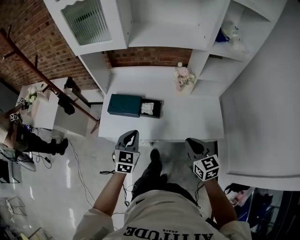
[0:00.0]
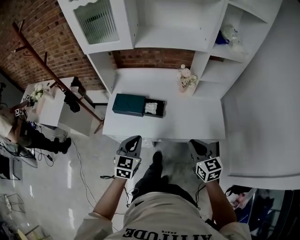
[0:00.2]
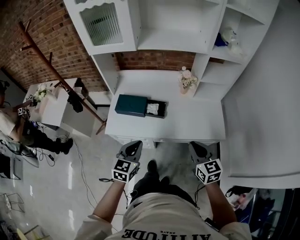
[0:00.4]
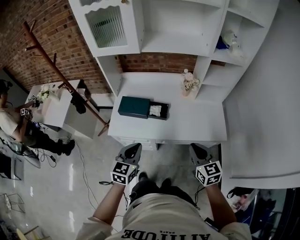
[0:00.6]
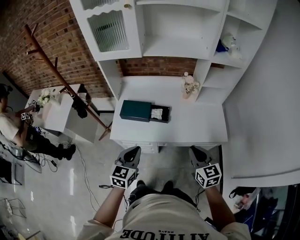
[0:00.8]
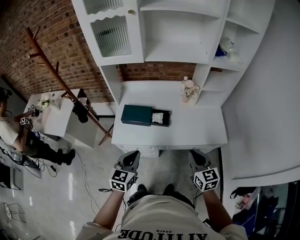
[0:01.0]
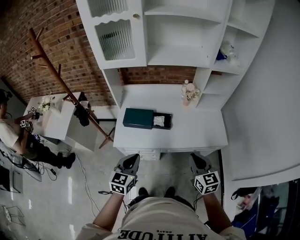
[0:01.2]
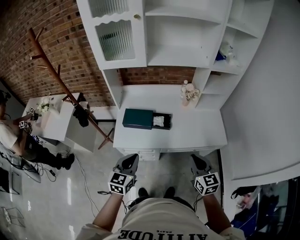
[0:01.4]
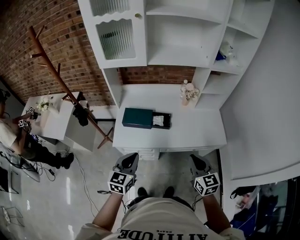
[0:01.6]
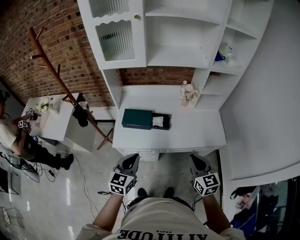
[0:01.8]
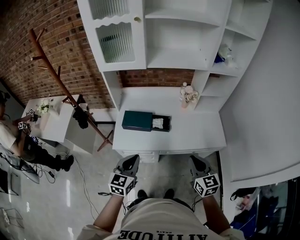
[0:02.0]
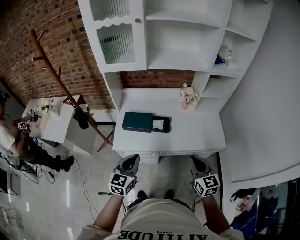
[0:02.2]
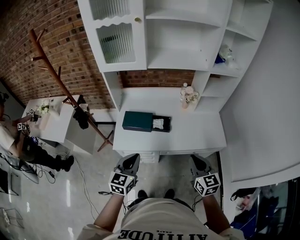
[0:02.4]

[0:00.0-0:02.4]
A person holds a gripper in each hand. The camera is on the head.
0:00.0 to 0:01.2: The right gripper heads backward and to the left, covering roughly 10 cm. The left gripper heads backward, to the left and upward, covering some 15 cm.
0:01.2 to 0:02.4: There are only small adjustments of the grippers.

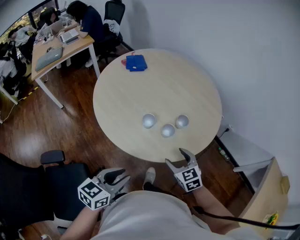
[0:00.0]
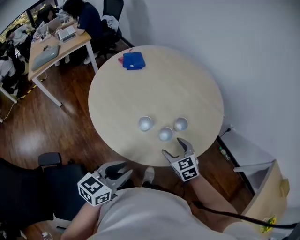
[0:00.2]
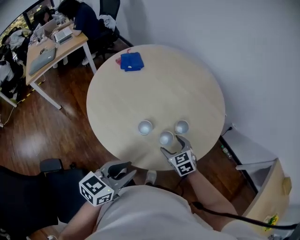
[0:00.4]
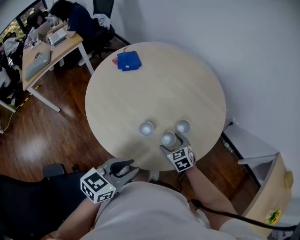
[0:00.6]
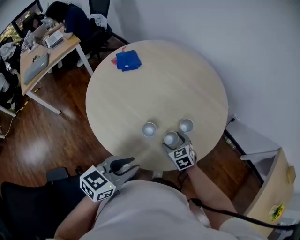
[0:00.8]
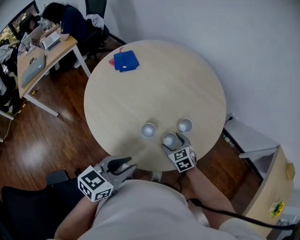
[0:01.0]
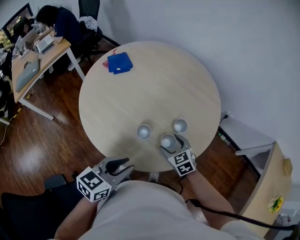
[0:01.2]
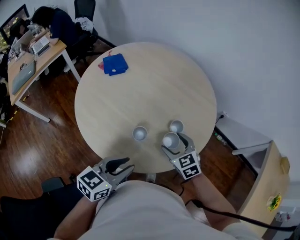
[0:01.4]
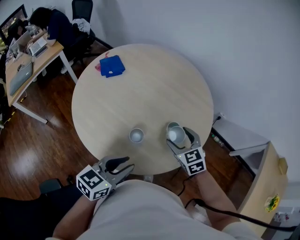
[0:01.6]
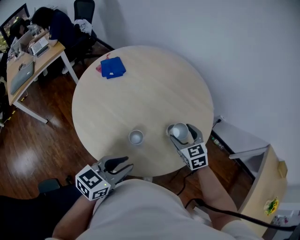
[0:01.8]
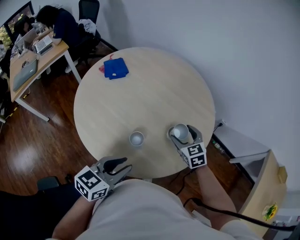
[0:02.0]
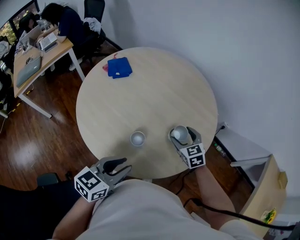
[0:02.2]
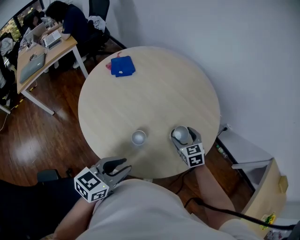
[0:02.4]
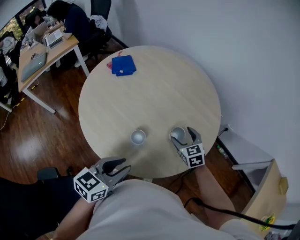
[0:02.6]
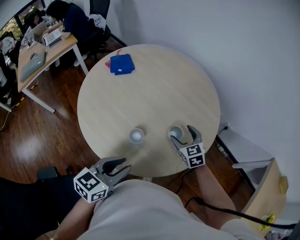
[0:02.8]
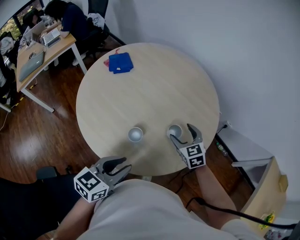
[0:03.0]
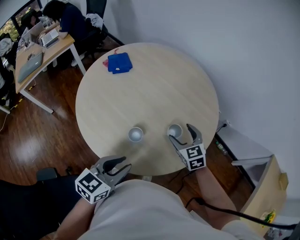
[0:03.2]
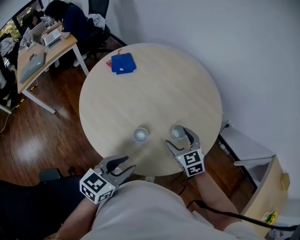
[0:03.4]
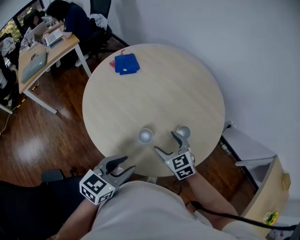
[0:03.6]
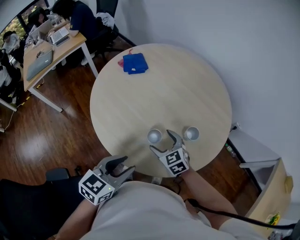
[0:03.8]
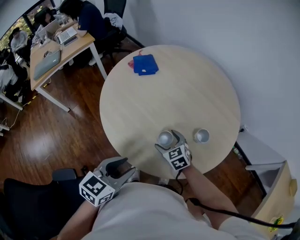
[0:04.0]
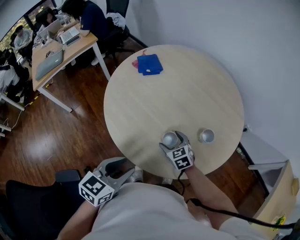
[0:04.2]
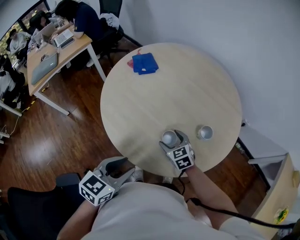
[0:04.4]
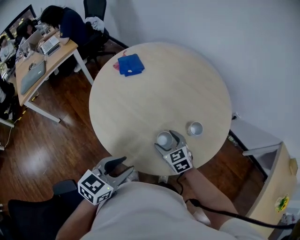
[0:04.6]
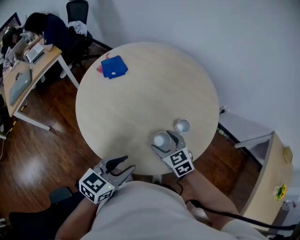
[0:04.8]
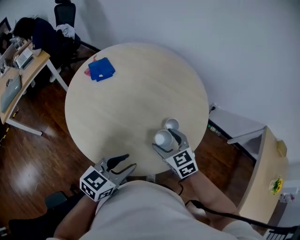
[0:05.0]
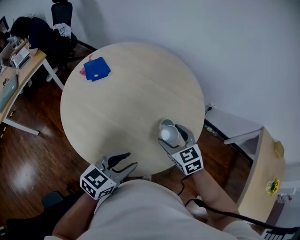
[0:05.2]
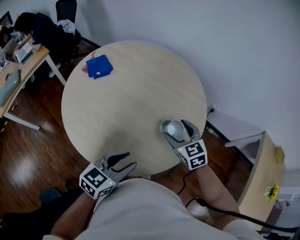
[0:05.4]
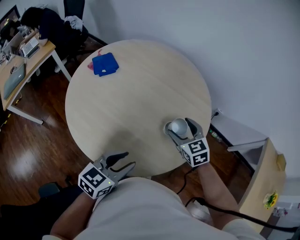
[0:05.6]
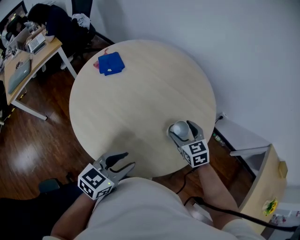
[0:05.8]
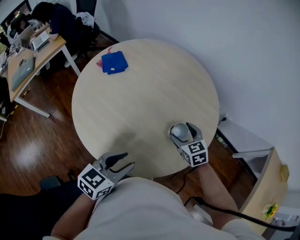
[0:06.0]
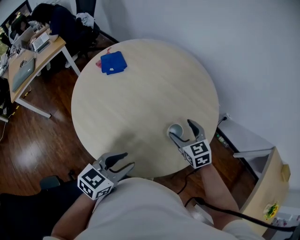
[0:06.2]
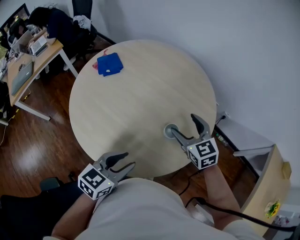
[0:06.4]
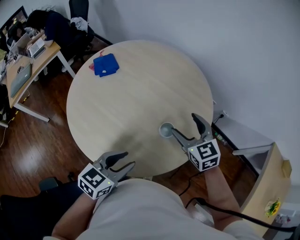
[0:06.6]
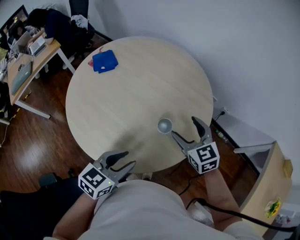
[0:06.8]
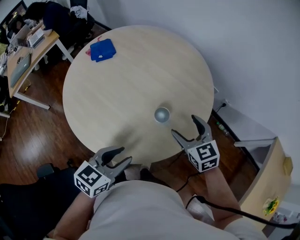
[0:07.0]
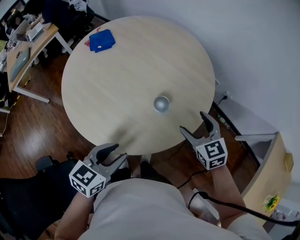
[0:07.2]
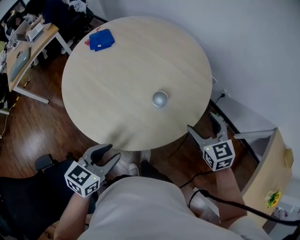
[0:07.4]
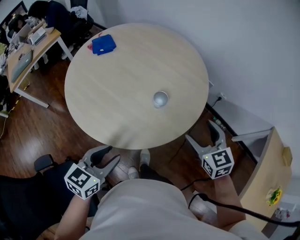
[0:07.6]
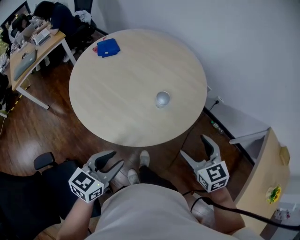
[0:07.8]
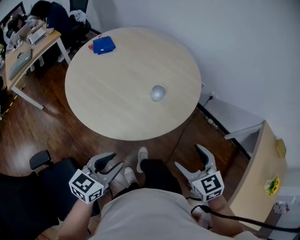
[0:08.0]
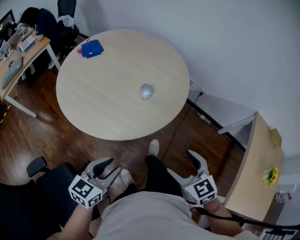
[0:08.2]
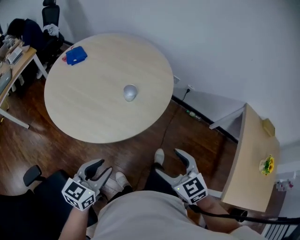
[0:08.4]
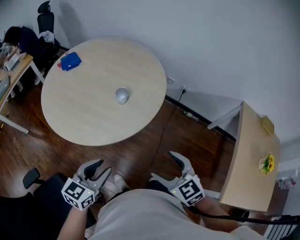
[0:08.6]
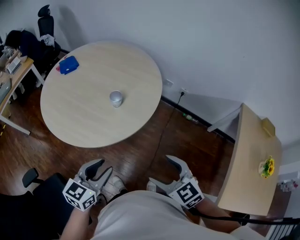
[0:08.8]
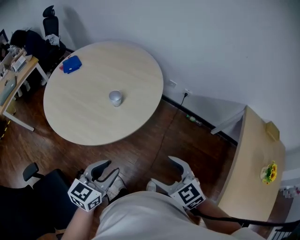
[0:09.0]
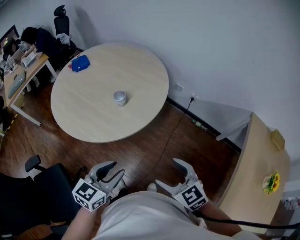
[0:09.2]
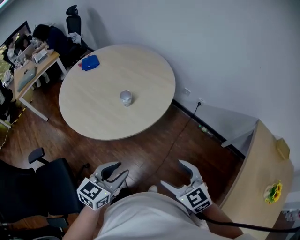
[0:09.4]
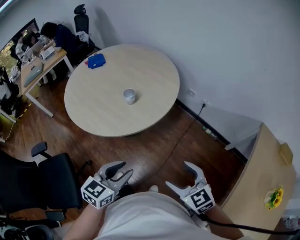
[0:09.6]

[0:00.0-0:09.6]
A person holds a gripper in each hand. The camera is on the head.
0:00.0 to 0:01.6: Both grippers move forward, some 15 cm.
0:03.2 to 0:04.8: The left gripper travels to the left by approximately 5 cm. Meanwhile the right gripper goes about 15 cm to the left and backward.
0:04.8 to 0:06.4: The right gripper moves forward, to the right and upward, approximately 20 cm; the left gripper is displaced to the right and forward by some 10 cm.
0:06.4 to 0:08.0: The right gripper heads backward, covering approximately 30 cm. The left gripper is displaced backward by roughly 20 cm.
0:08.0 to 0:09.6: The right gripper heads to the right and backward, covering approximately 20 cm. The left gripper goes some 25 cm to the right.

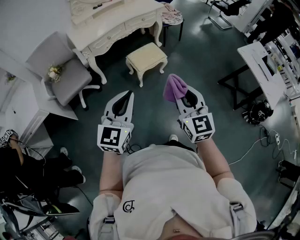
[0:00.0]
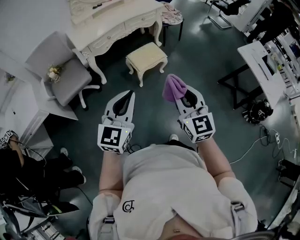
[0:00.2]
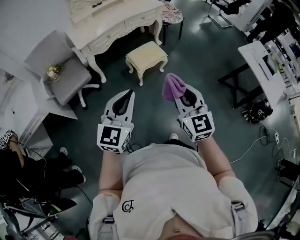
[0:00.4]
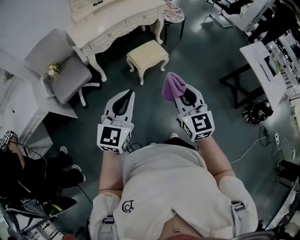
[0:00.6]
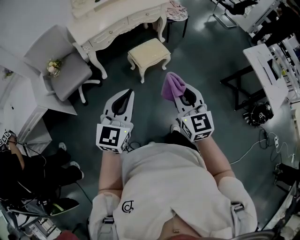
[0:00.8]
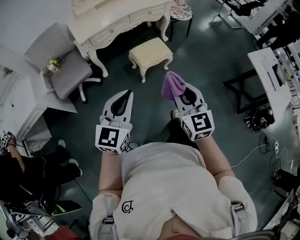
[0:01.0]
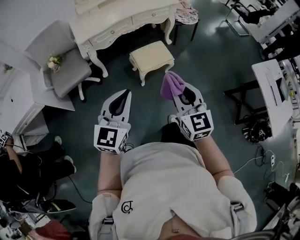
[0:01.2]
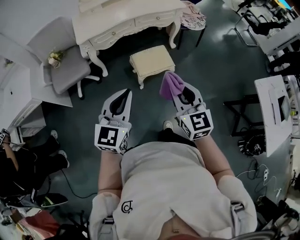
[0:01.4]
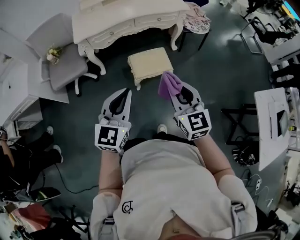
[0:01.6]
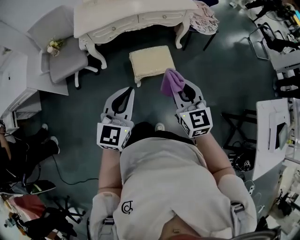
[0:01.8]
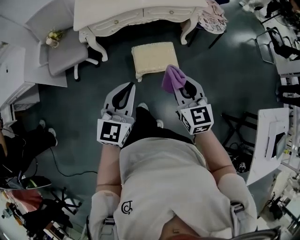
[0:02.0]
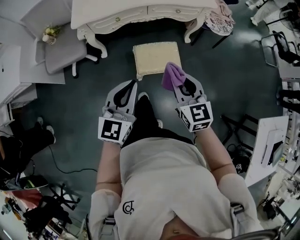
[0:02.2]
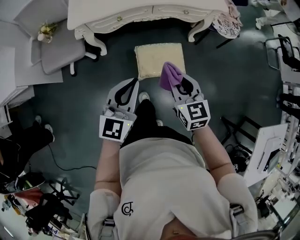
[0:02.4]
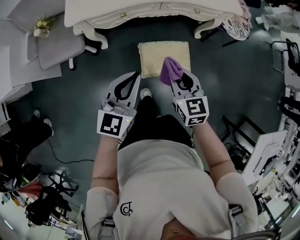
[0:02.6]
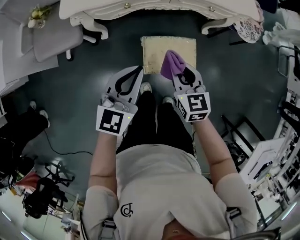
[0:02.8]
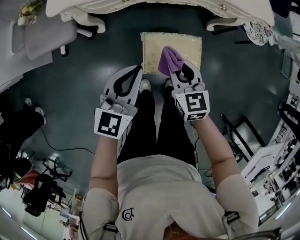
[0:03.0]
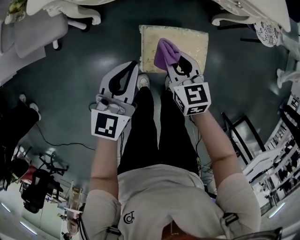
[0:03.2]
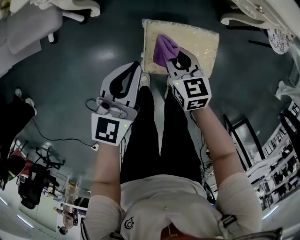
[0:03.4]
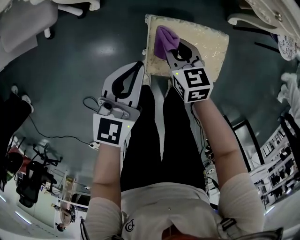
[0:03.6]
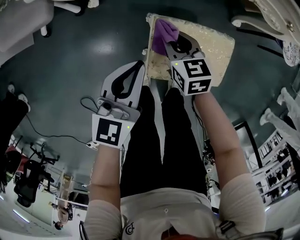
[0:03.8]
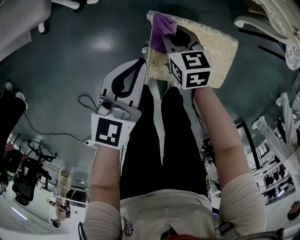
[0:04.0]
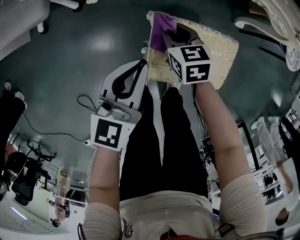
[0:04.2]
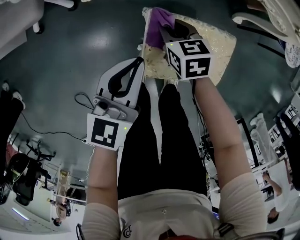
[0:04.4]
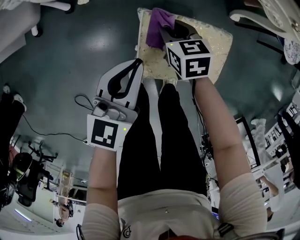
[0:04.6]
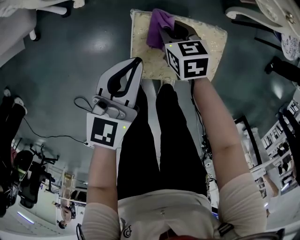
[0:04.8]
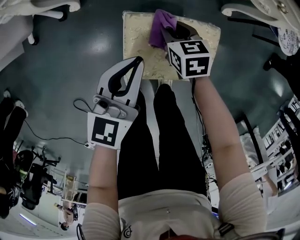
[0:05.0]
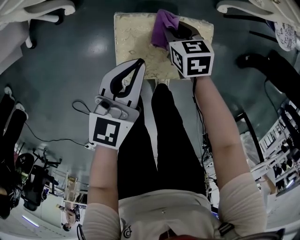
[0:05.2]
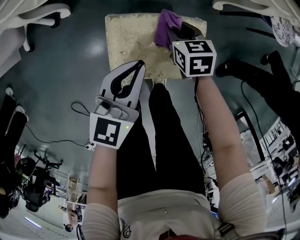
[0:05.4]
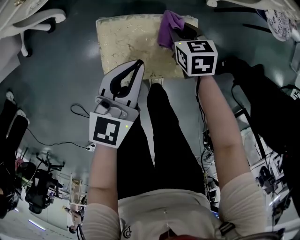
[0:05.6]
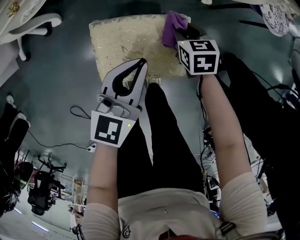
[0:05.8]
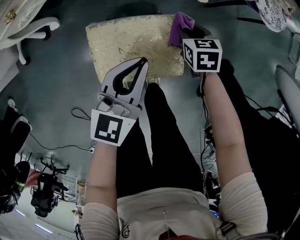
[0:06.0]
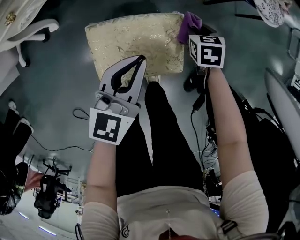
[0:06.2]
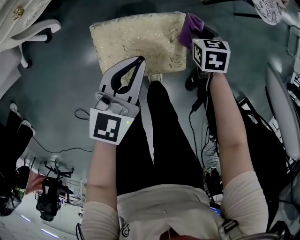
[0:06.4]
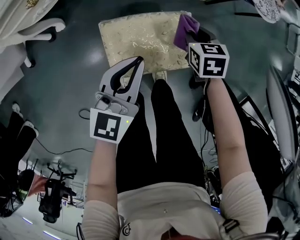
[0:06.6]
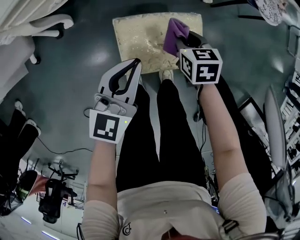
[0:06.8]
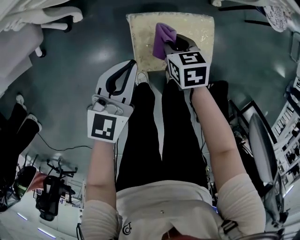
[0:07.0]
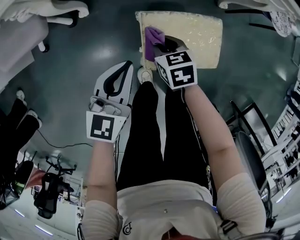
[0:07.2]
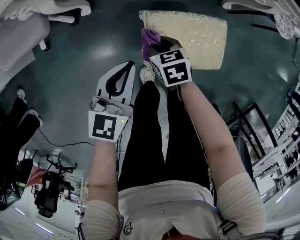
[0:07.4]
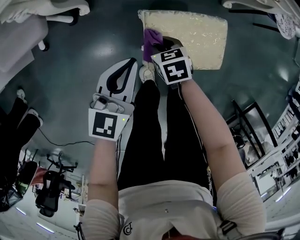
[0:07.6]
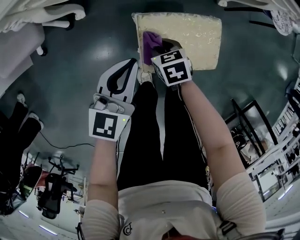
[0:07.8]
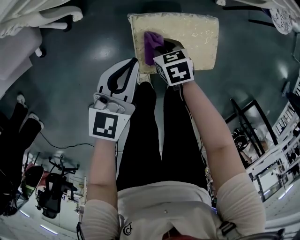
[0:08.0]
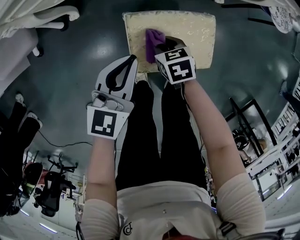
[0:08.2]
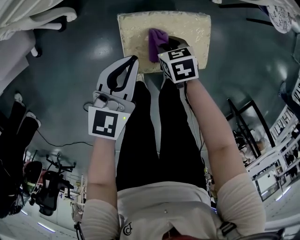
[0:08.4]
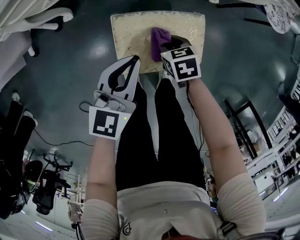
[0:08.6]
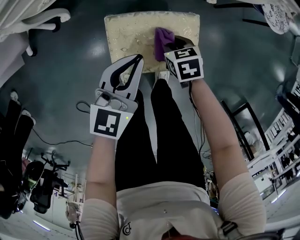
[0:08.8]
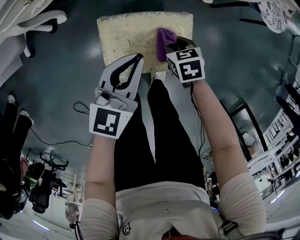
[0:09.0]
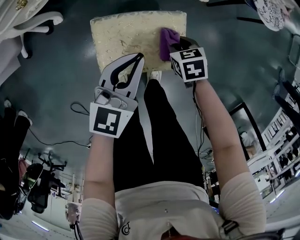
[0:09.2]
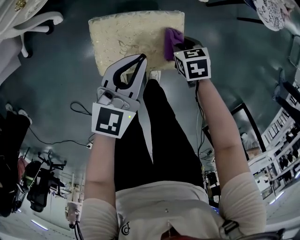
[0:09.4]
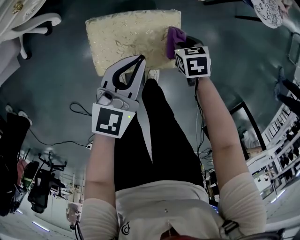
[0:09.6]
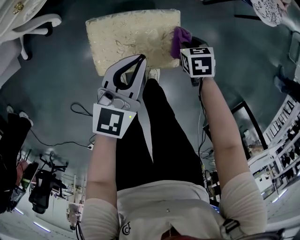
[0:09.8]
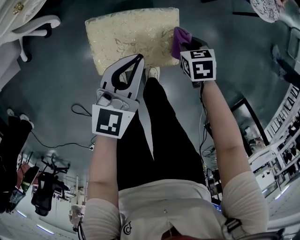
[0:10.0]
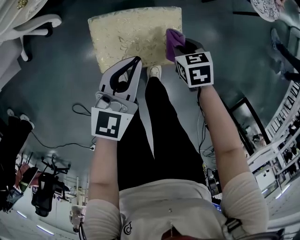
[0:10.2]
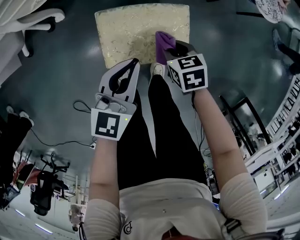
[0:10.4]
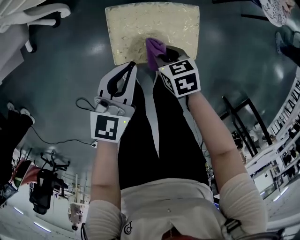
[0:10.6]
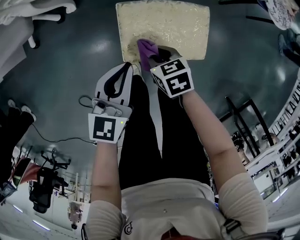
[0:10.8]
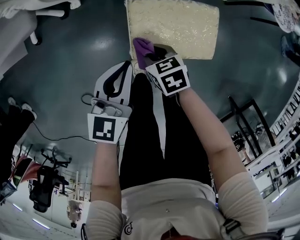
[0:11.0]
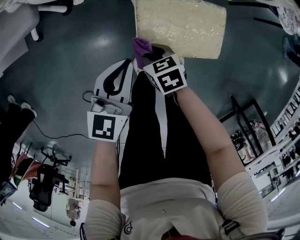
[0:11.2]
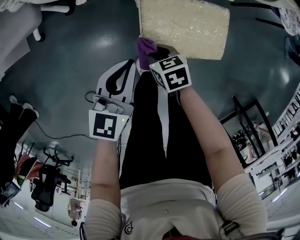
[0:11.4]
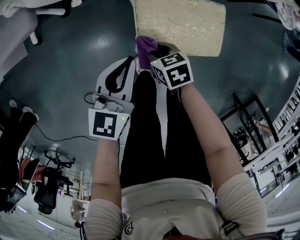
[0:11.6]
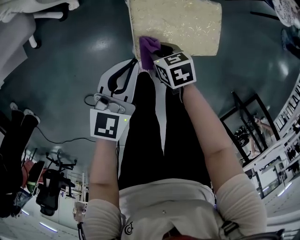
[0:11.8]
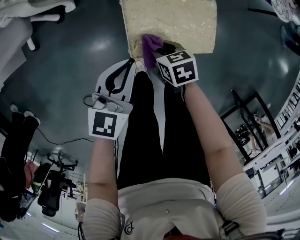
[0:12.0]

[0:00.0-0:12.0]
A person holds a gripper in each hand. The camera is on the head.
0:00.0 to 0:01.6: The right gripper goes roughly 25 cm forward, and swivels approximately 20 degrees, while the left gripper moves forward and to the right, roughly 25 cm.
0:01.6 to 0:03.0: The grippers both shift forward and downward by approximately 40 cm. The right gripper changes its angle by some 20 degrees.
0:03.0 to 0:04.4: Both grippers travel together downward, some 25 cm. The right gripper swivels approximately 30 degrees.
0:04.4 to 0:06.0: Both grippers travel together to the right, some 25 cm. The right gripper rotates some 20 degrees.
0:06.0 to 0:07.6: The right gripper goes approximately 30 cm to the left and backward. The left gripper is displaced to the left by about 20 cm.
0:07.6 to 0:09.0: Both grippers travel together to the right, about 20 cm.
0:09.0 to 0:10.4: The right gripper moves about 10 cm to the right and comes back, while the left gripper travels backward by approximately 5 cm.
0:10.4 to 0:12.0: The grippers both shift to the left by some 15 cm.
